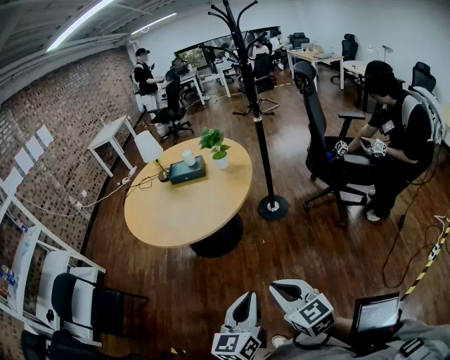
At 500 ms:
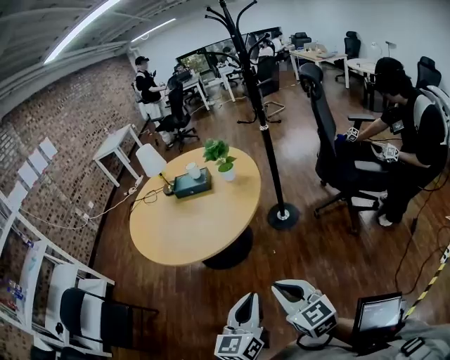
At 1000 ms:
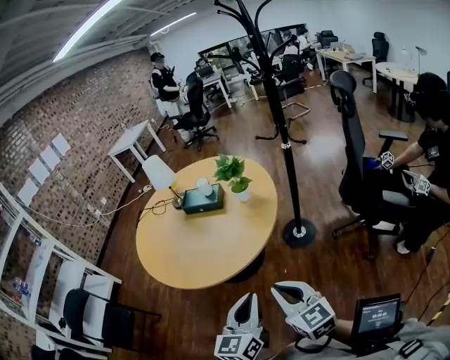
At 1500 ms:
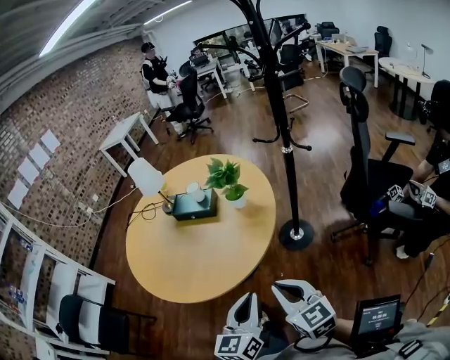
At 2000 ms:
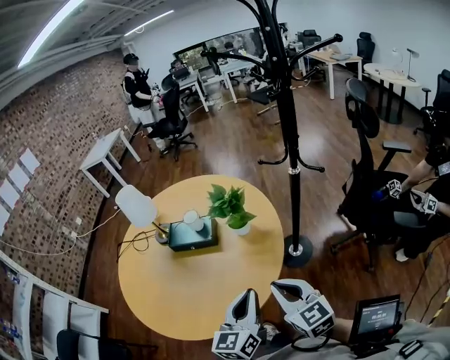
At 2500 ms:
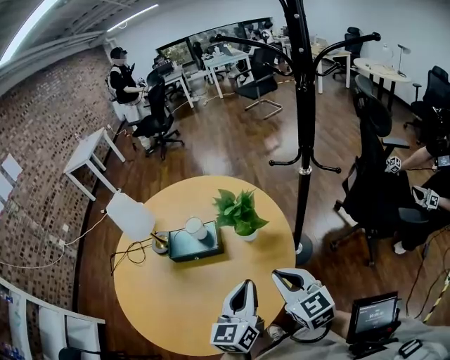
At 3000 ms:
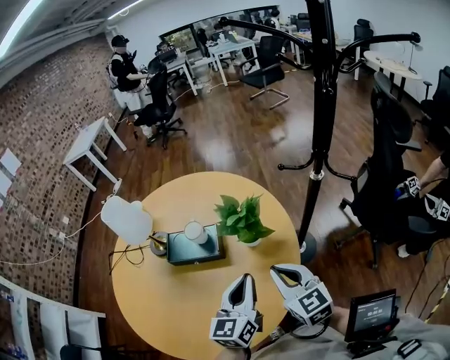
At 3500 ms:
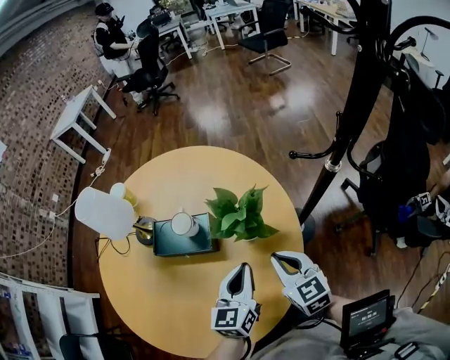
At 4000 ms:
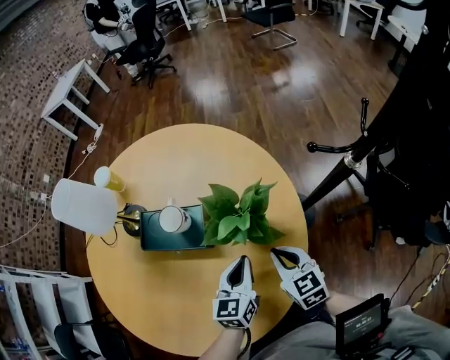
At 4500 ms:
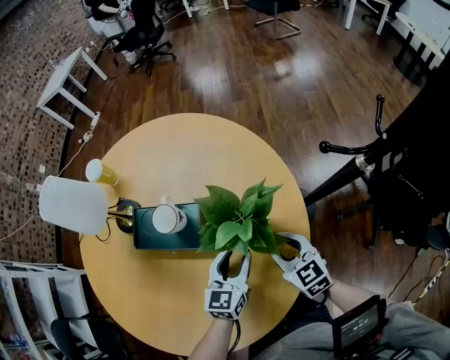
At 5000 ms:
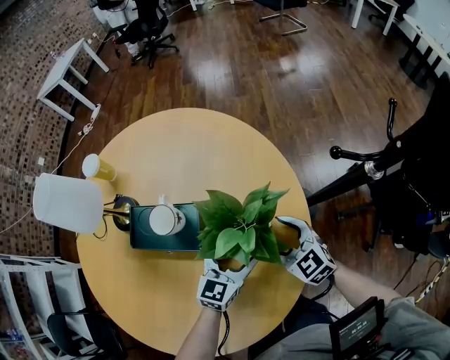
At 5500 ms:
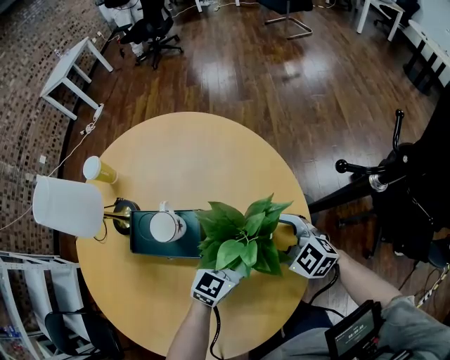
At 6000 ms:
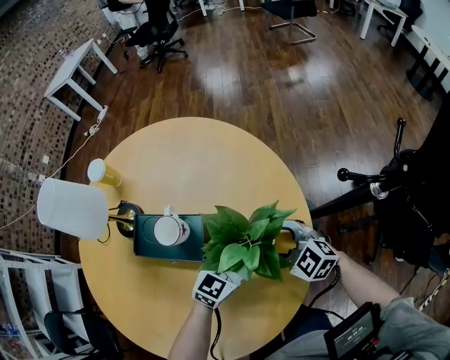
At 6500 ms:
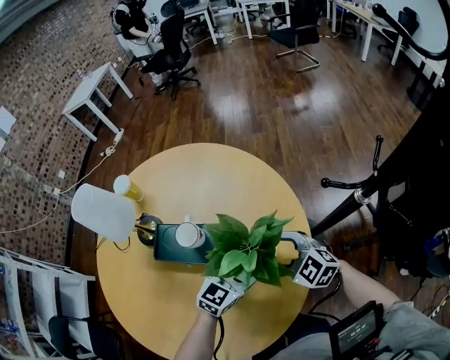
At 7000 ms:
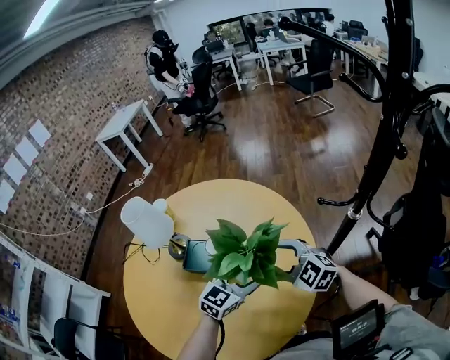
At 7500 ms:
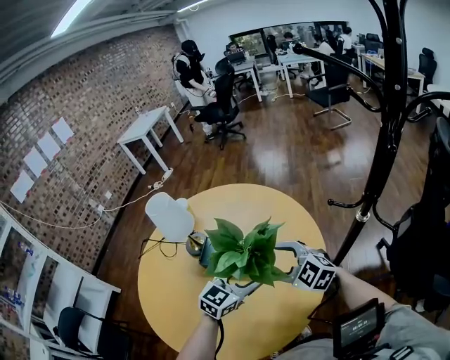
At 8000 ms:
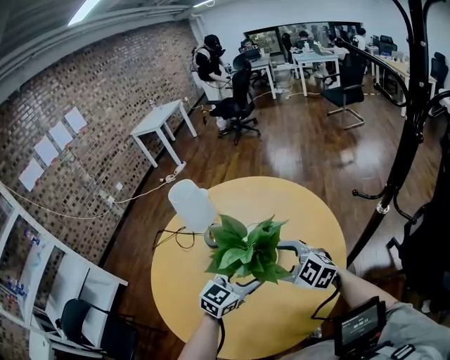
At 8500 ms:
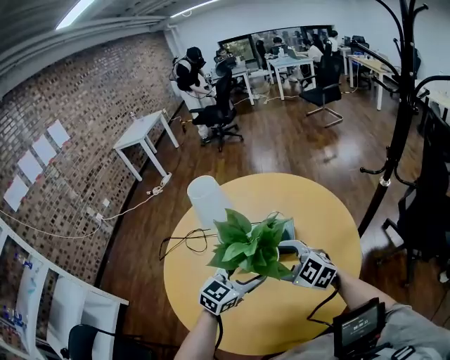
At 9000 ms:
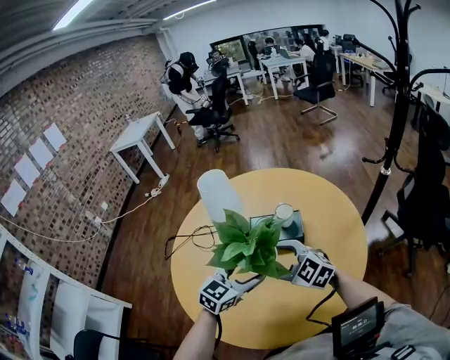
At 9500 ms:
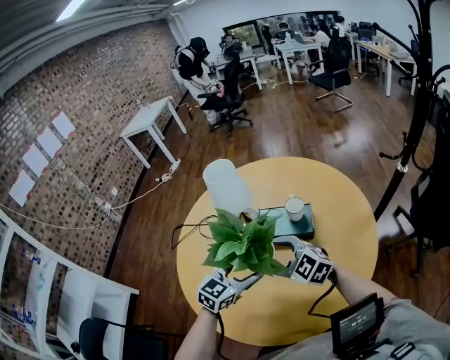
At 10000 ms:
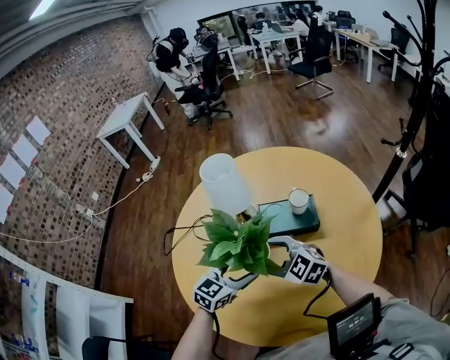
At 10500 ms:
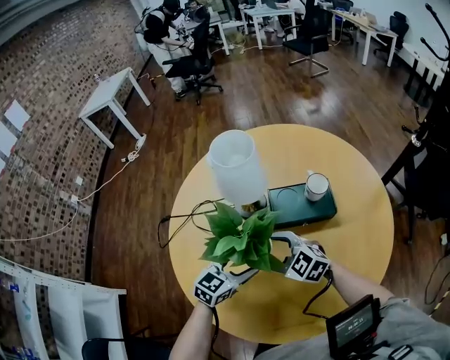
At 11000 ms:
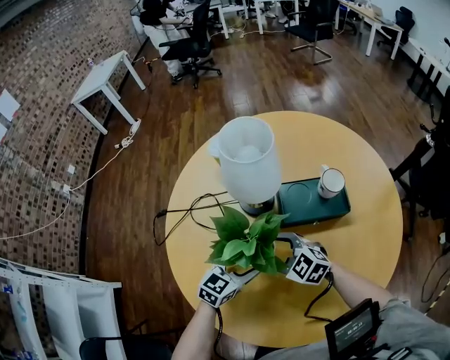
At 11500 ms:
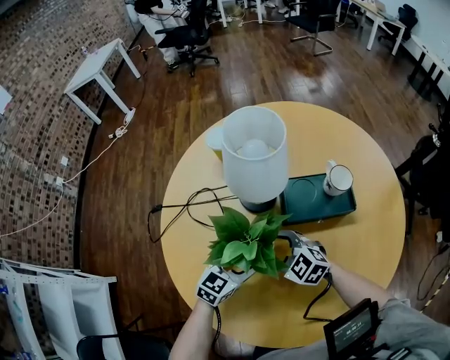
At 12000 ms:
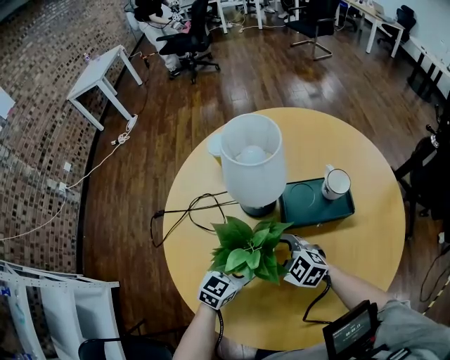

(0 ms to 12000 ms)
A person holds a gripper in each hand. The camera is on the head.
0 ms - 2000 ms: Both grippers are carried forward, roughly 50 cm.
2000 ms - 4000 ms: The two grippers go about 35 cm forward and downward.
4000 ms - 6000 ms: The right gripper travels forward by some 10 cm, rotates roughly 40 degrees, and opens up, while the left gripper moves forward and downward, about 10 cm, swivels about 30 degrees, and opens.
6000 ms - 8000 ms: Both grippers move upward, to the left and backward, roughly 30 cm.
8000 ms - 10000 ms: Both grippers move to the left, about 30 cm.
10000 ms - 12000 ms: The two grippers go some 20 cm downward, to the left and forward.

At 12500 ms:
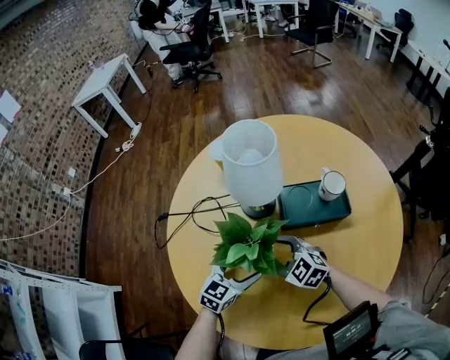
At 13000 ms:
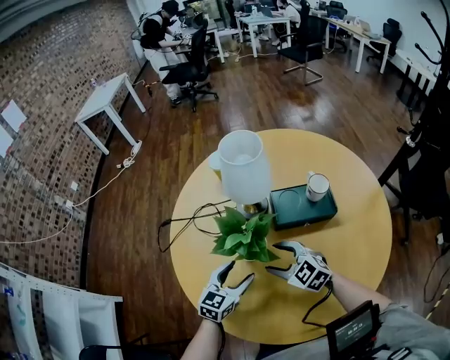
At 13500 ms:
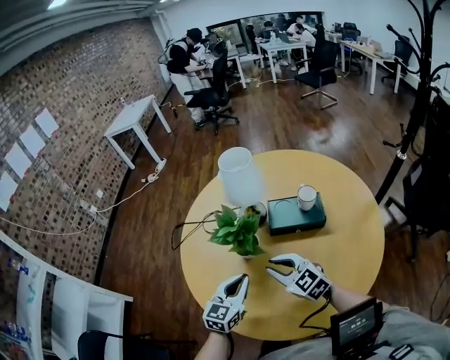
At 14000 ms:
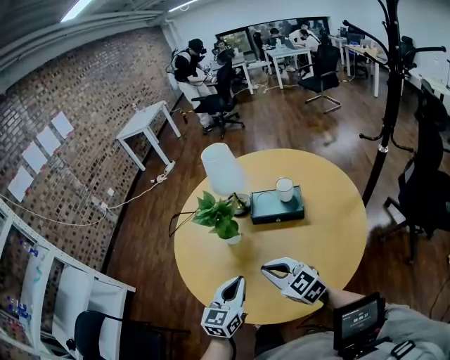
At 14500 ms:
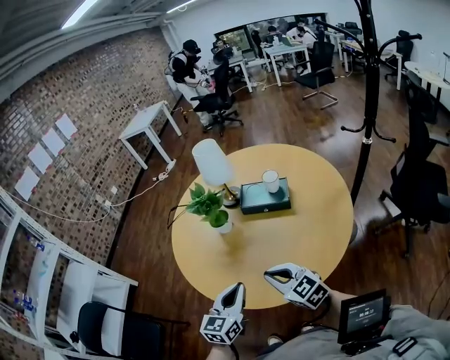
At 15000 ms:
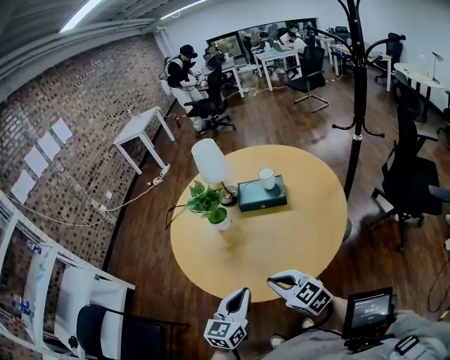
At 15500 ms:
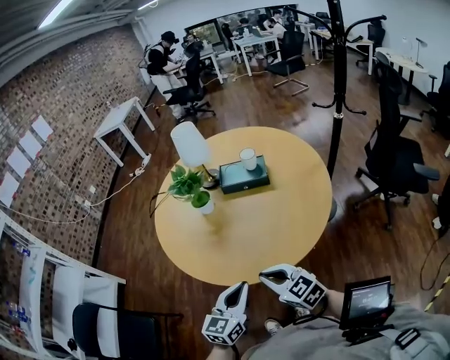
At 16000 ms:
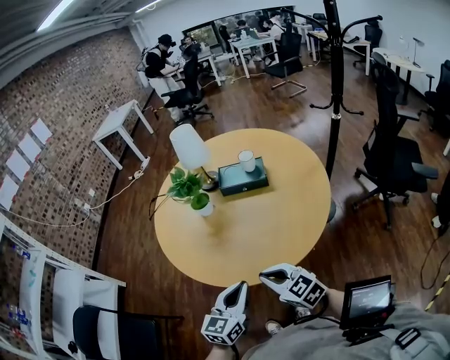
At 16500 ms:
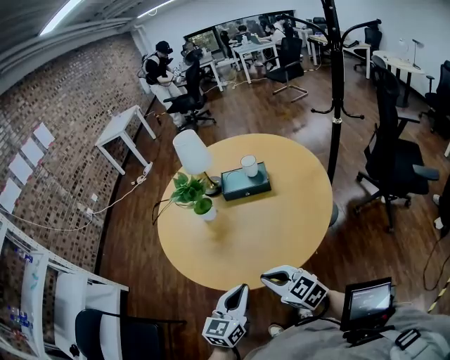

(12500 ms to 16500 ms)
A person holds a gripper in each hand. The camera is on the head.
12500 ms - 14500 ms: The grippers both shift backward, upward and to the right by approximately 40 cm. The right gripper changes its angle by about 20 degrees, and closes its fingers. Meanwhile the left gripper changes its angle by roughly 30 degrees, and closes.
14500 ms - 16500 ms: The grippers both shift backward by some 10 cm.

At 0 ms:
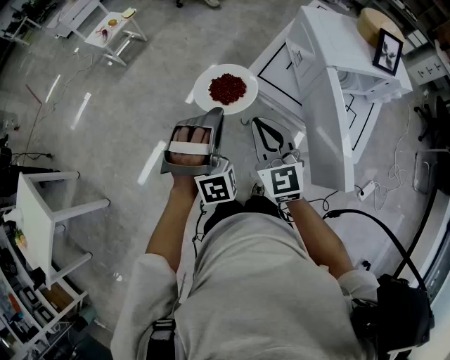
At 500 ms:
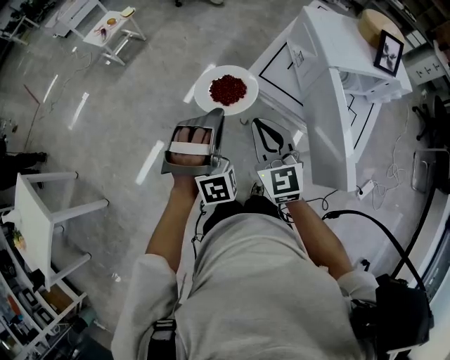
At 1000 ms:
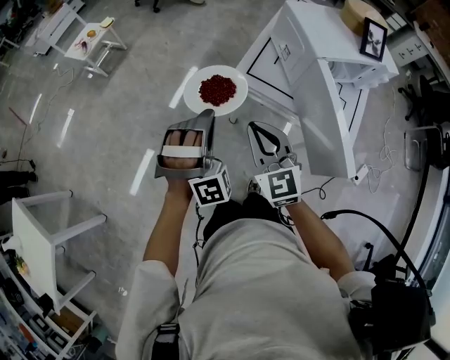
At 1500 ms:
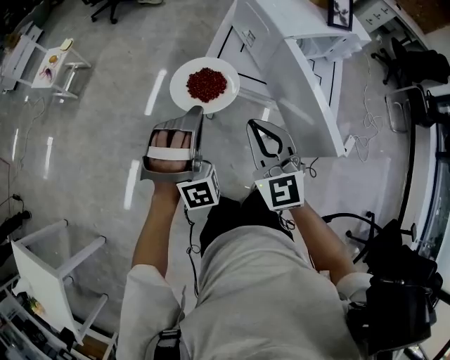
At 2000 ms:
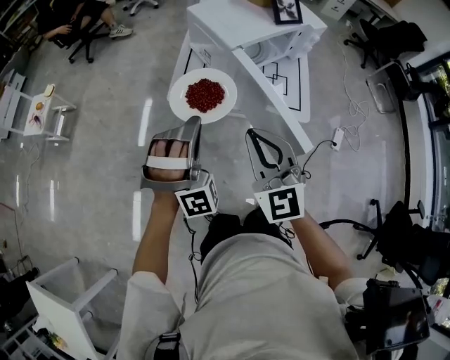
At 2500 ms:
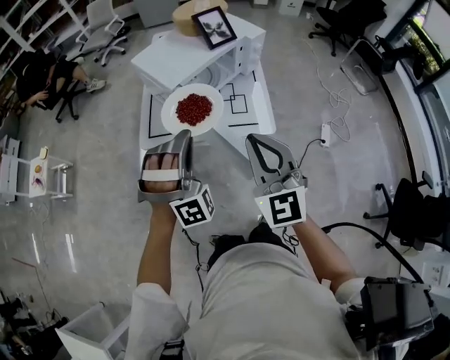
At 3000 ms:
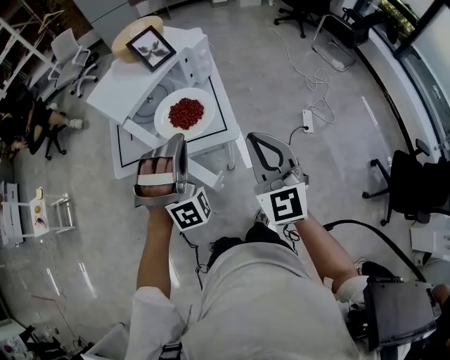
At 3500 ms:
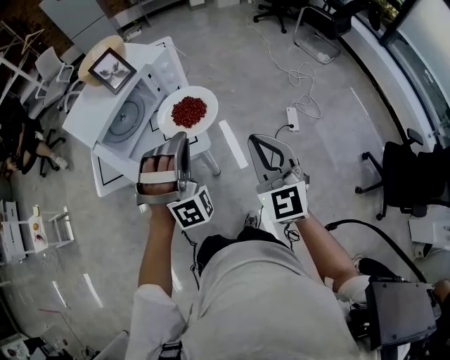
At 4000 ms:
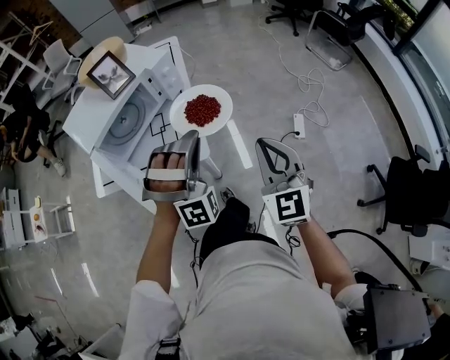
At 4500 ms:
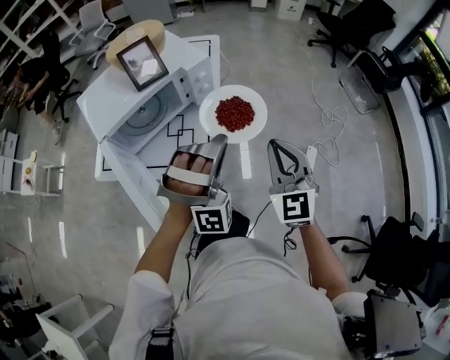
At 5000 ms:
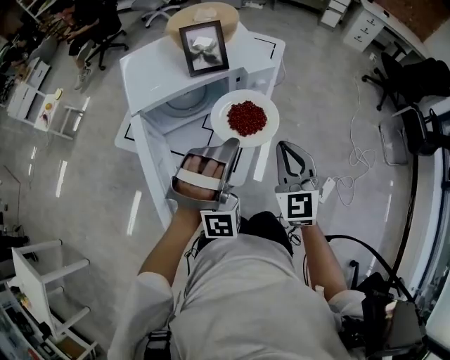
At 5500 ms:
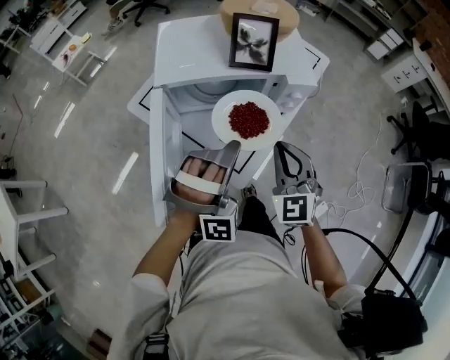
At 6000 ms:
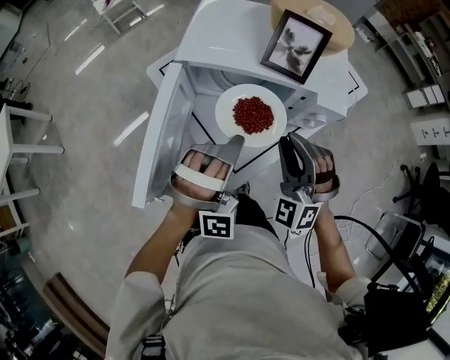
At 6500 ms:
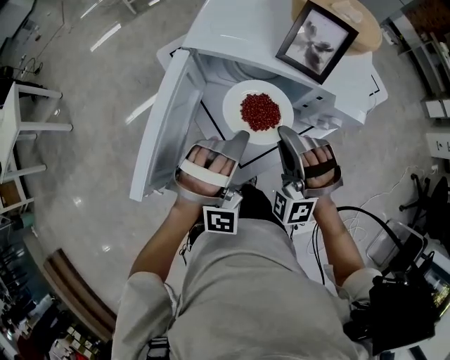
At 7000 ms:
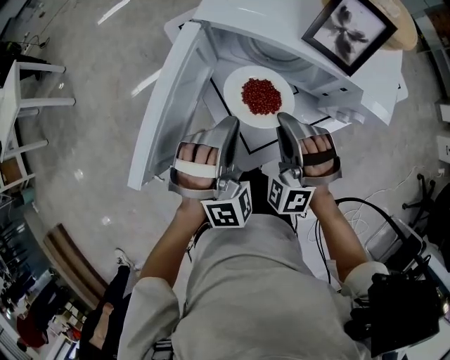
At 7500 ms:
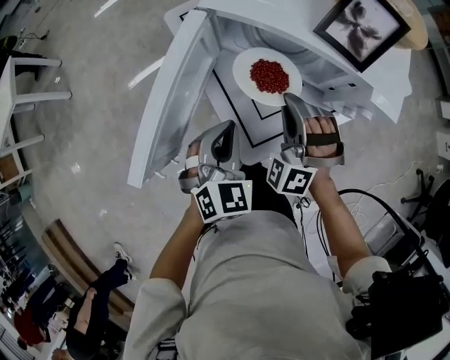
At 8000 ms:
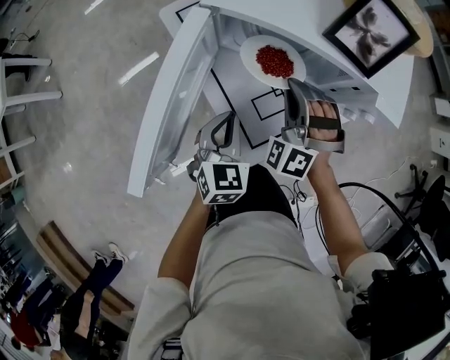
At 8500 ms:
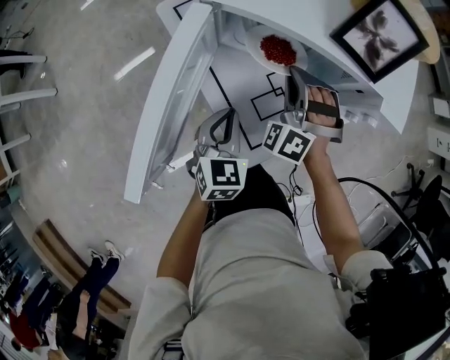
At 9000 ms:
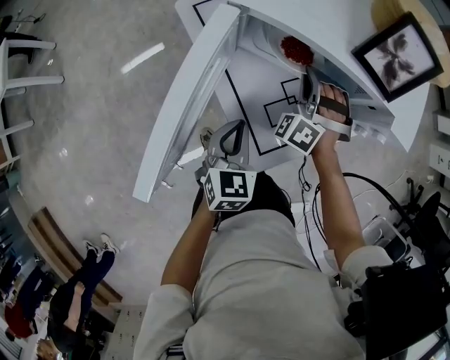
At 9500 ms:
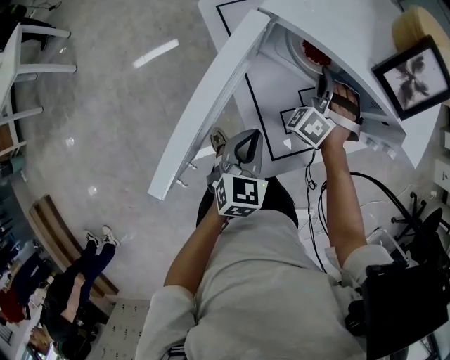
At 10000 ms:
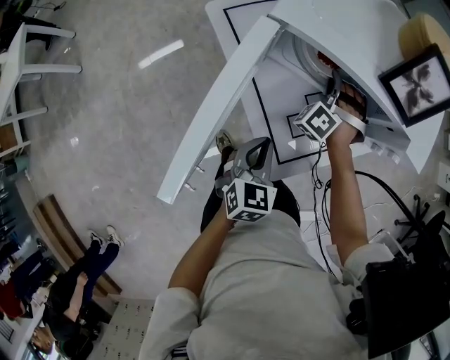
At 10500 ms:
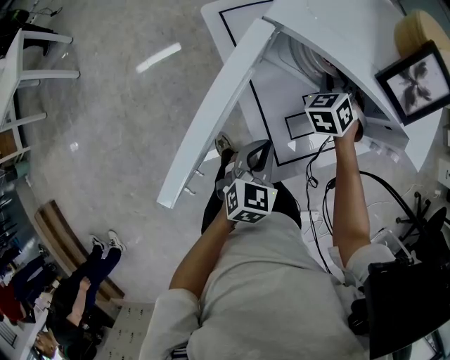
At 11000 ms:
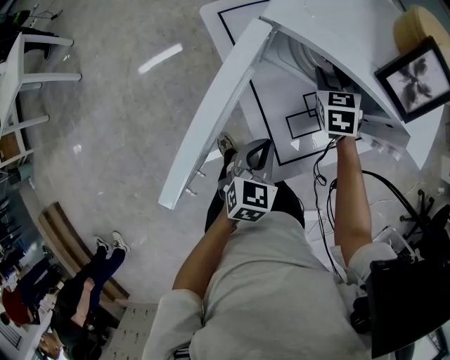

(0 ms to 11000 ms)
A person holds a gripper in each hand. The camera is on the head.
0 ms - 2000 ms: The right gripper shifts by some 15 cm, and swivels roughly 30 degrees. Meanwhile the left gripper changes place by roughly 10 cm, and rotates about 30 degrees.
2000 ms - 3500 ms: Both grippers travel together to the right, some 40 cm. The left gripper turns by about 20 degrees; the right gripper turns by roughly 30 degrees.
3500 ms - 5500 ms: The right gripper ends up approximately 30 cm from where it was, and swivels roughly 50 degrees. Meanwhile the left gripper shifts by approximately 15 cm, and turns by some 40 degrees.
5500 ms - 7500 ms: The left gripper goes about 15 cm downward, and rolls counterclockwise, seen from behind, by approximately 70 degrees, while the right gripper moves some 15 cm, and rolls counterclockwise, seen from behind, by some 50 degrees.
7500 ms - 9000 ms: The left gripper is displaced downward by some 5 cm, and changes its angle by some 20 degrees; the right gripper moves forward and downward, approximately 15 cm.
9000 ms - 11000 ms: The right gripper travels forward by roughly 5 cm, rolls clockwise, seen from behind, by approximately 60 degrees, and opens its fingers.
